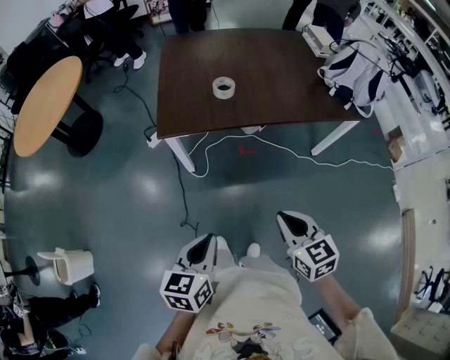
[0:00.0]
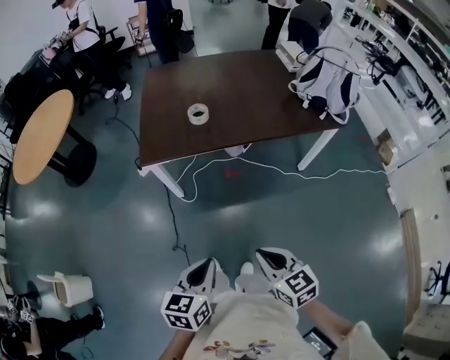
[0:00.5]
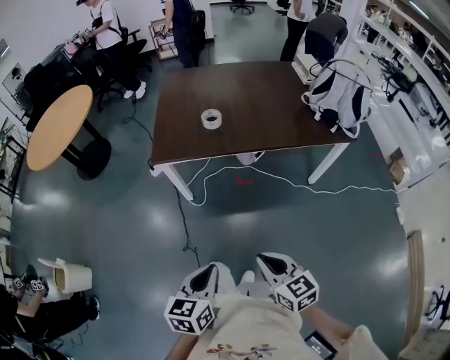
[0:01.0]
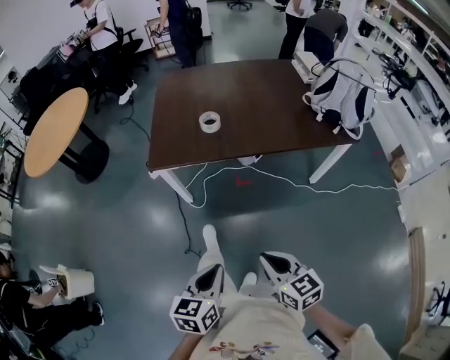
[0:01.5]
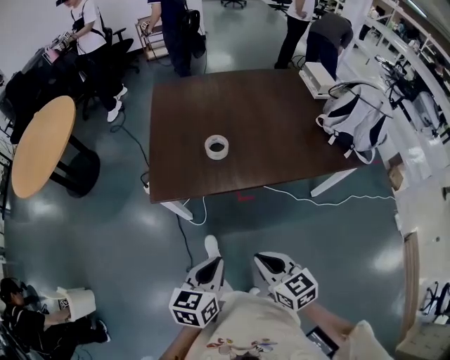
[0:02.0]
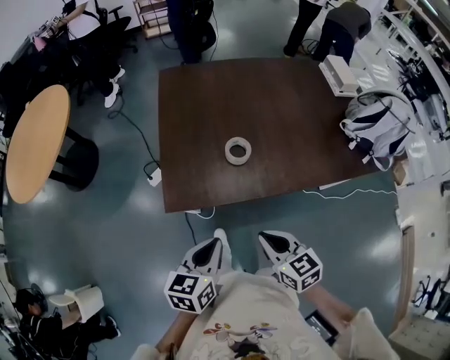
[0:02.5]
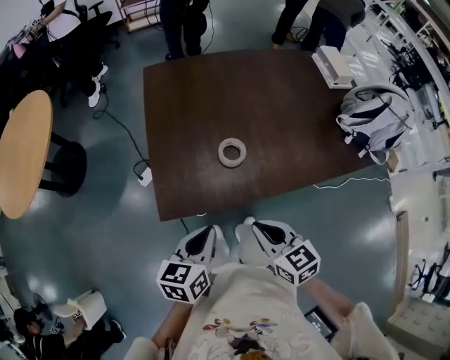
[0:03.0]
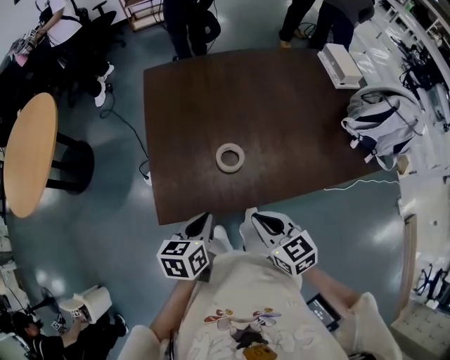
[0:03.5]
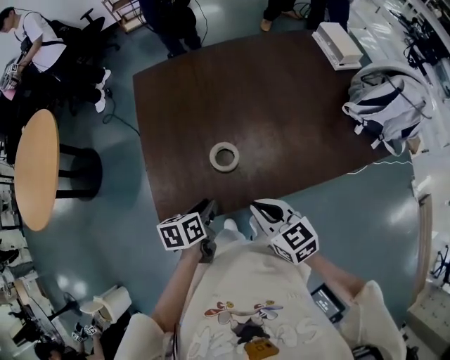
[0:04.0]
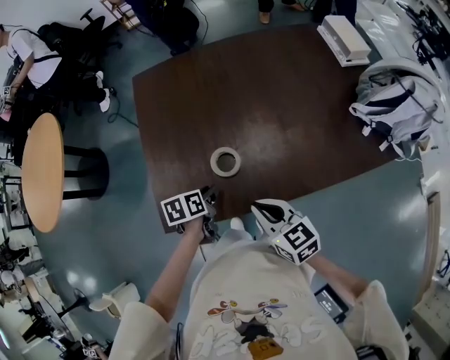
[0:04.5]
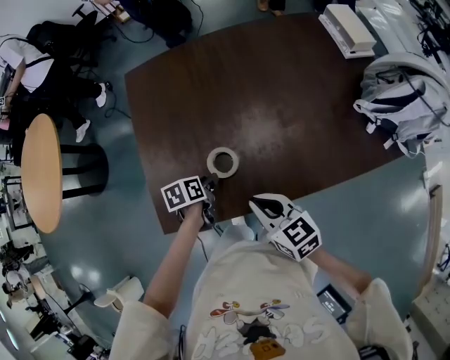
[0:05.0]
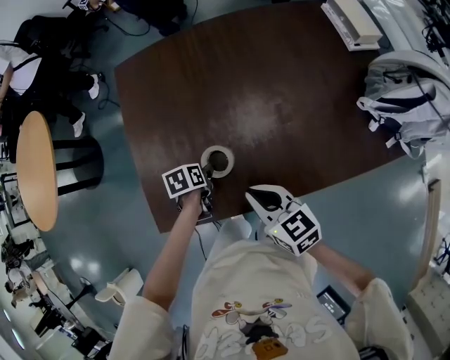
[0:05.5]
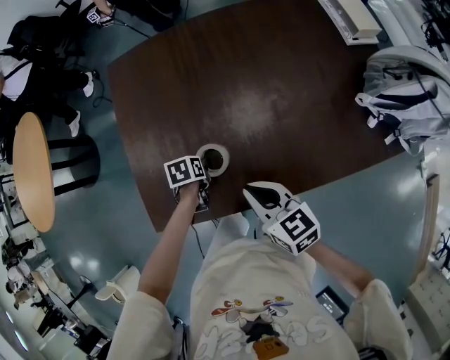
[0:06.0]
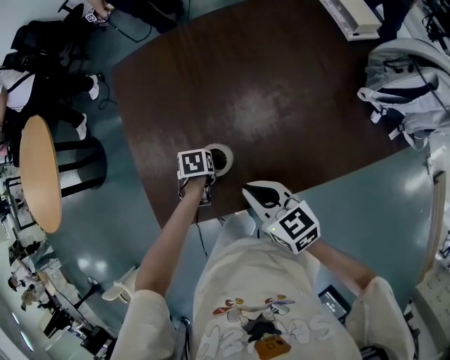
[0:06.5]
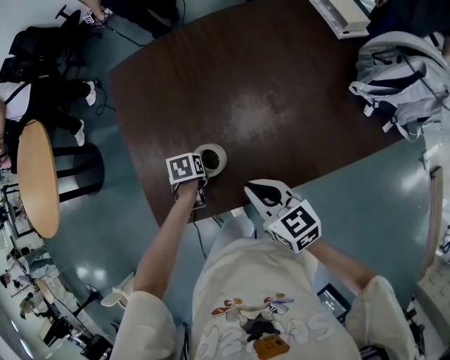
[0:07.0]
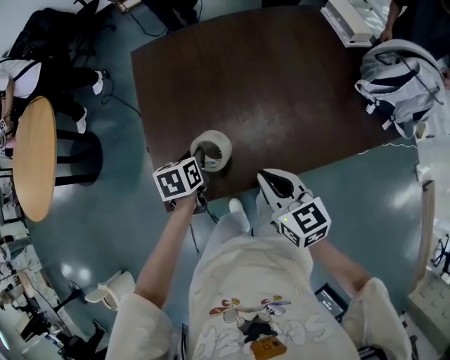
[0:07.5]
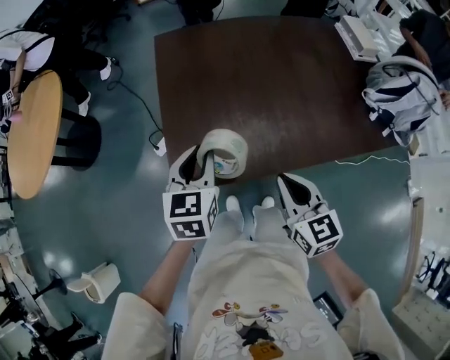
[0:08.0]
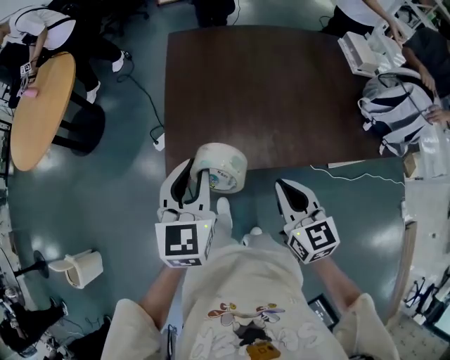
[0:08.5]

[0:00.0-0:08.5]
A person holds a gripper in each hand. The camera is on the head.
0:00.0 to 0:02.0: The left gripper shifts about 20 cm forward and to the right. The right gripper travels forward by approximately 15 cm.
0:02.0 to 0:04.0: The two grippers go about 35 cm forward. The left gripper rotates roughly 30 degrees, and opens its fingers.
0:04.0 to 0:06.5: The right gripper changes place by approximately 10 cm. Meanwhile the left gripper travels downward by roughly 15 cm, and angles its fingers downward, by some 30 degrees.
0:06.5 to 0:08.5: The left gripper heads upward, covering some 35 cm, and tilts its fingers roughly 60 degrees upward; the right gripper shifts by approximately 25 cm, and rotates about 20 degrees.

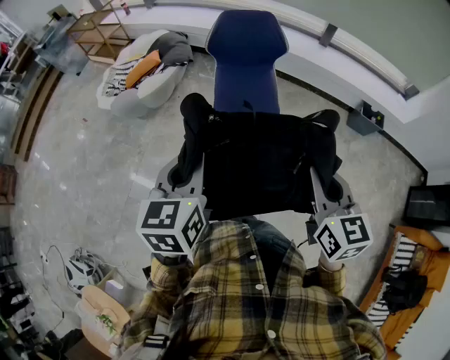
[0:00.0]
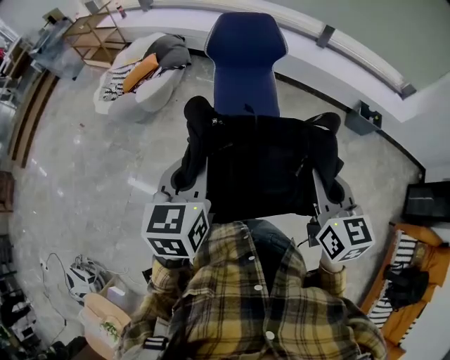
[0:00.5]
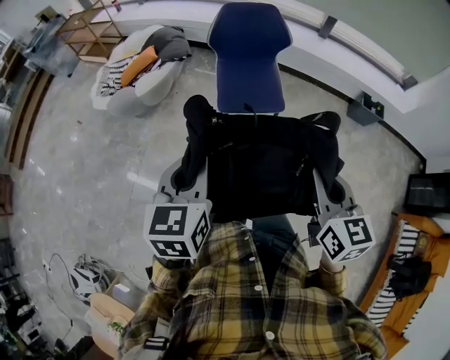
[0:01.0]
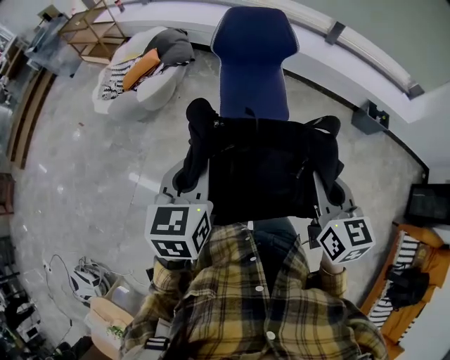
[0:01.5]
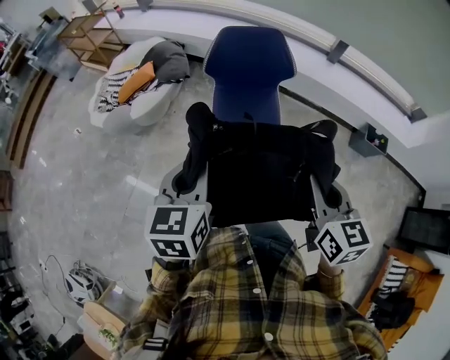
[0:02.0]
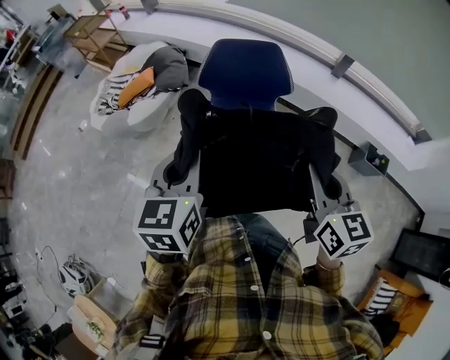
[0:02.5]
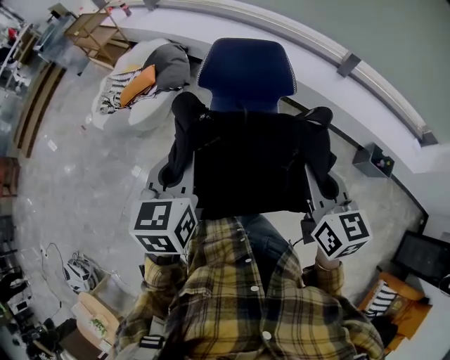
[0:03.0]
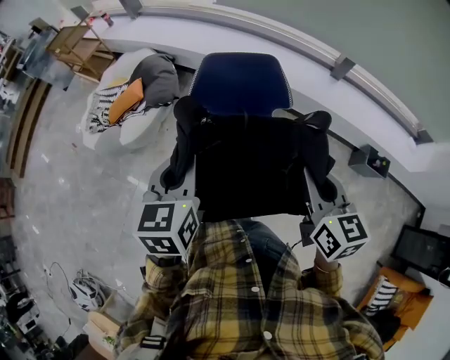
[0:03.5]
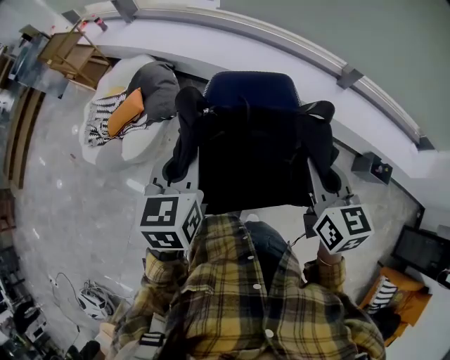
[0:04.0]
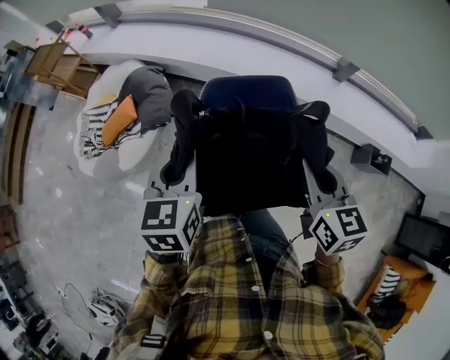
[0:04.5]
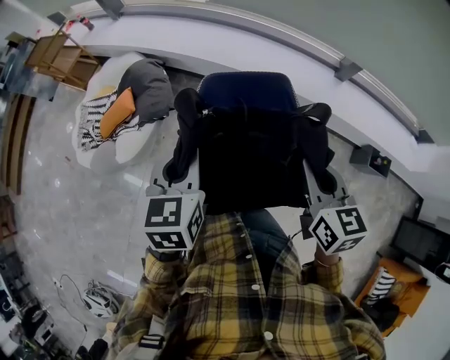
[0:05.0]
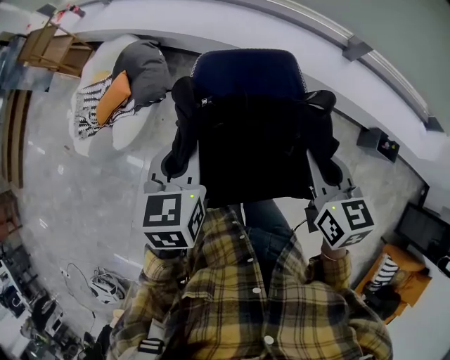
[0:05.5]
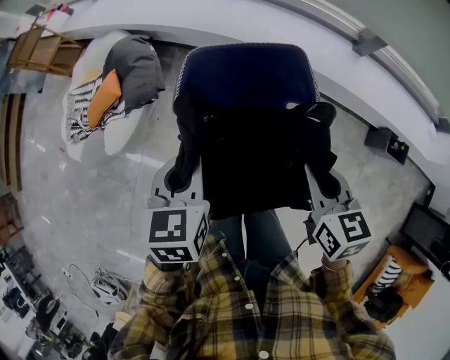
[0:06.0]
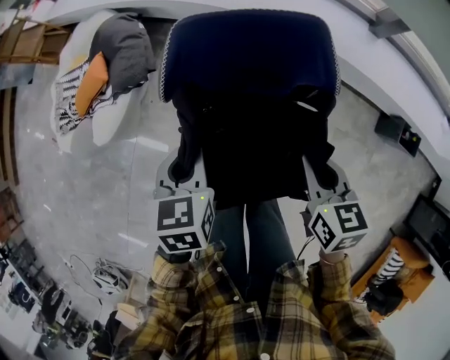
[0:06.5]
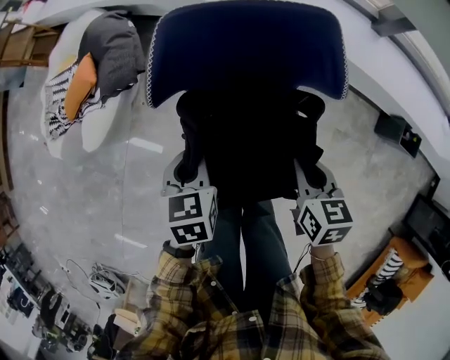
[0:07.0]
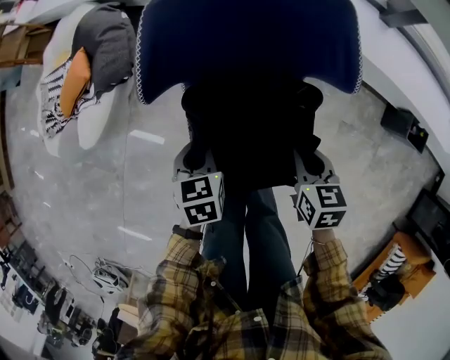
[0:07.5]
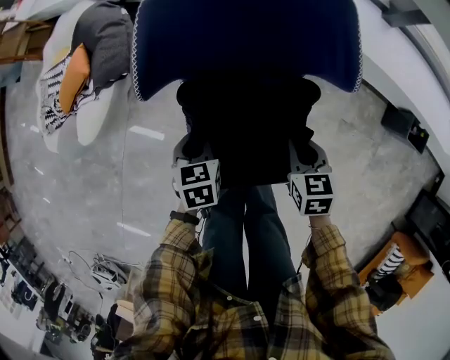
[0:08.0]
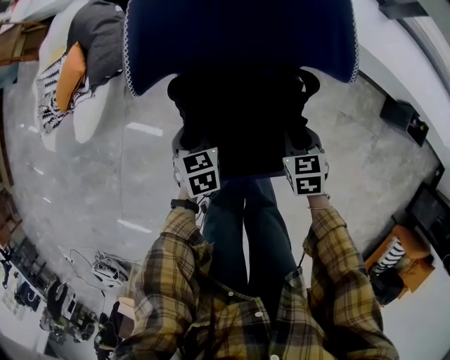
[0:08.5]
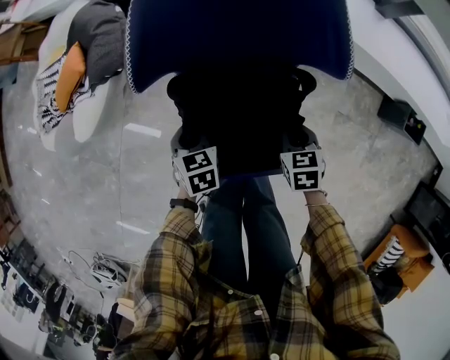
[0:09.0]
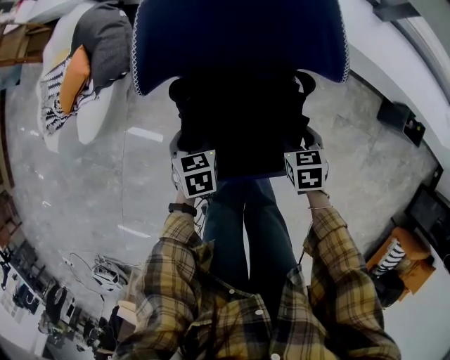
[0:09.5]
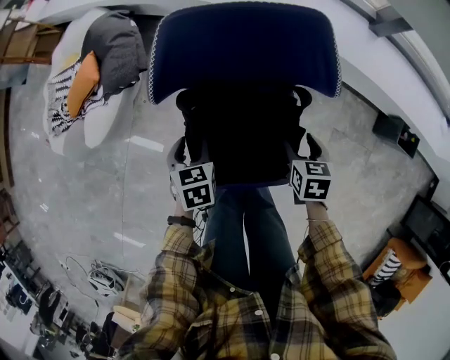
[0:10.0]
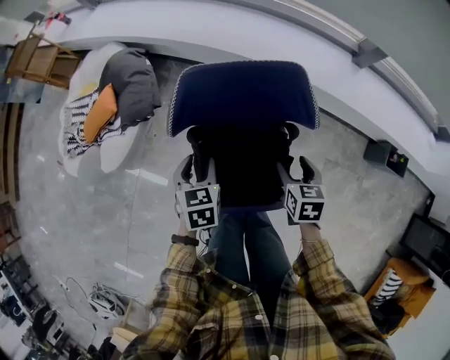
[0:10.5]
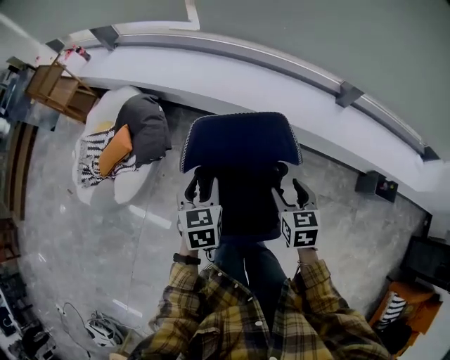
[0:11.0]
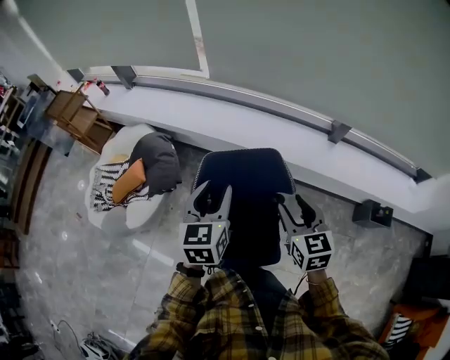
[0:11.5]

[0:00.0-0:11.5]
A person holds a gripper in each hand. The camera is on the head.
0:00.0 to 0:02.0: Both grippers move forward, roughly 20 cm.
0:02.0 to 0:04.0: The two grippers go about 35 cm forward.
0:04.0 to 0:06.0: The two grippers go roughly 15 cm downward.
0:06.0 to 0:07.5: The grippers both shift downward by roughly 25 cm.
0:07.5 to 0:09.5: The right gripper heads downward, covering approximately 10 cm, and opens. Meanwhile the left gripper travels downward by about 5 cm, and opens its fingers.
0:09.5 to 0:11.5: The two grippers go some 40 cm upward. The right gripper points its fingers approximately 40 degrees further upward. Meanwhile the left gripper tilts its fingers about 40 degrees upward.

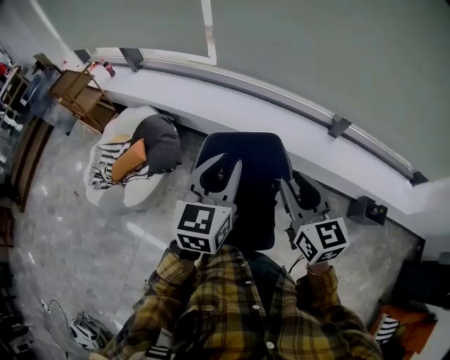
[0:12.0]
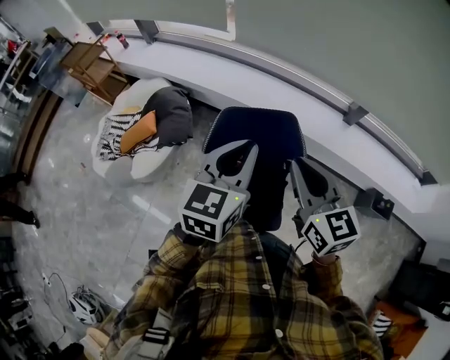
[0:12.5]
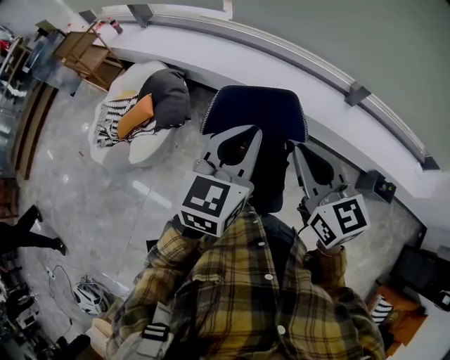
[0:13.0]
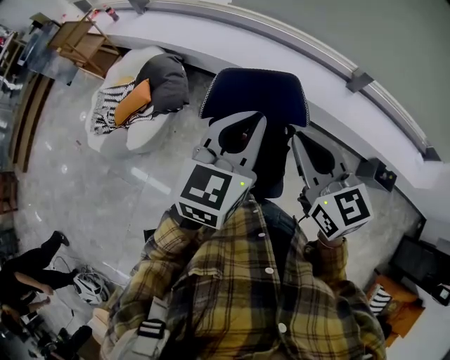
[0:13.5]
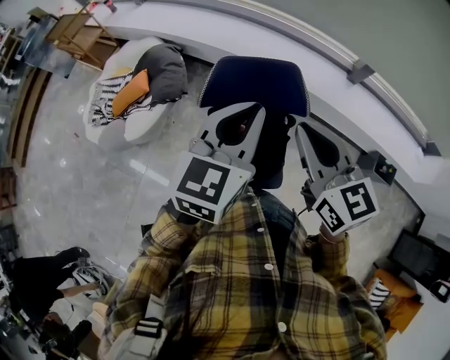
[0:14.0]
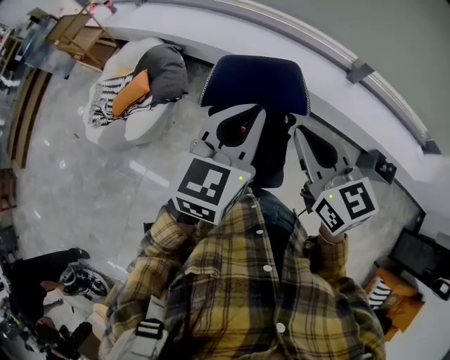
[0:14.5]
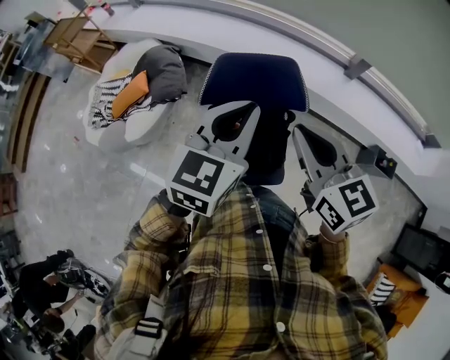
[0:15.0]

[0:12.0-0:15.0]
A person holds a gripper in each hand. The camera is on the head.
0:12.0 to 0:13.5: The right gripper changes place by roughly 5 cm, and closes; the left gripper goes roughly 5 cm backward, and closes its fingers.
0:13.5 to 0:15.0: There are only small adjustments of the grippers.

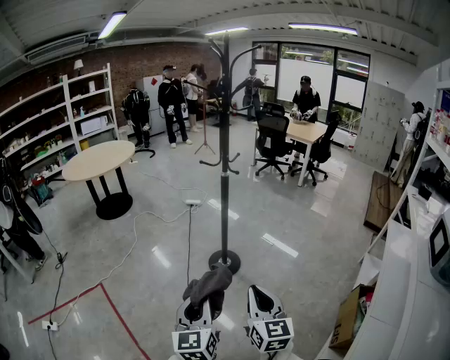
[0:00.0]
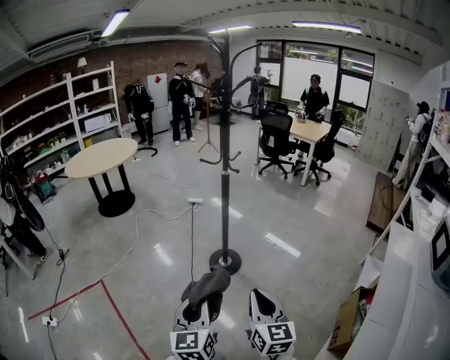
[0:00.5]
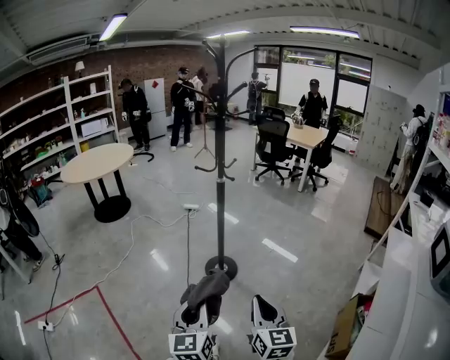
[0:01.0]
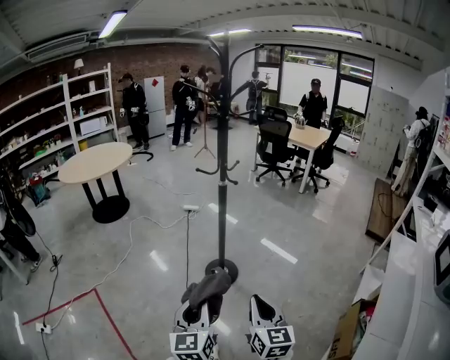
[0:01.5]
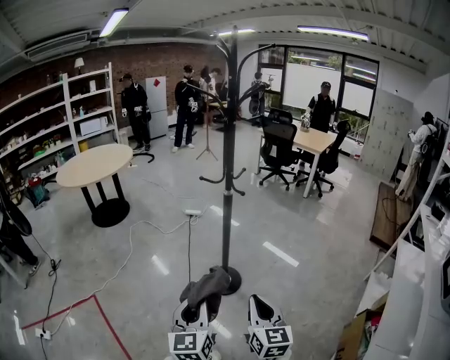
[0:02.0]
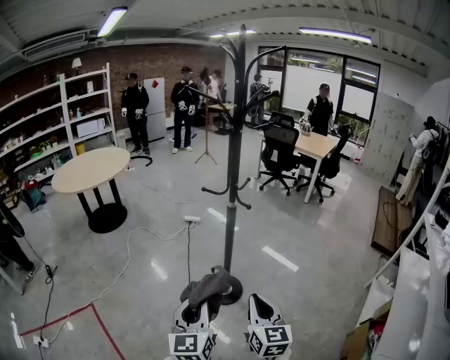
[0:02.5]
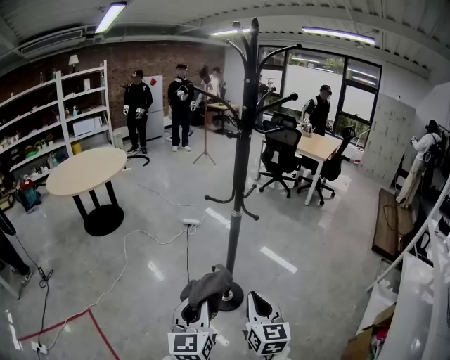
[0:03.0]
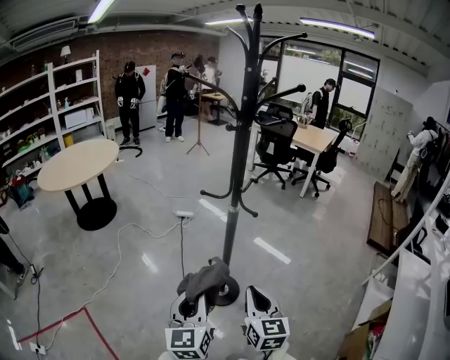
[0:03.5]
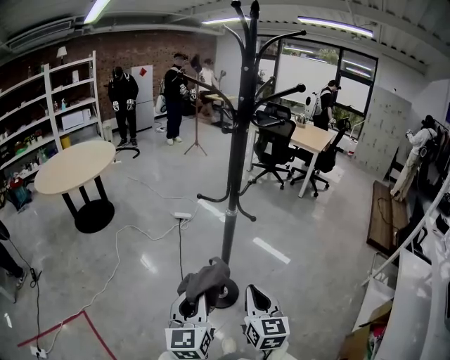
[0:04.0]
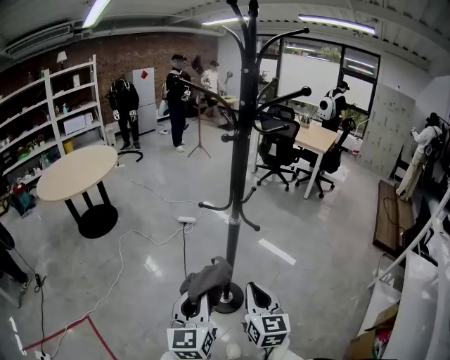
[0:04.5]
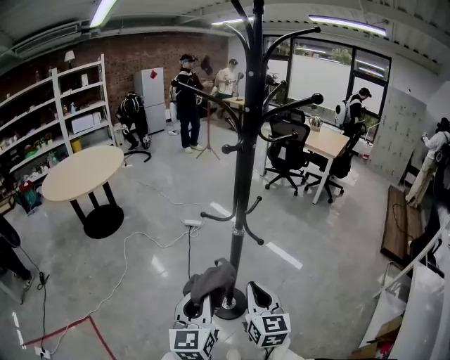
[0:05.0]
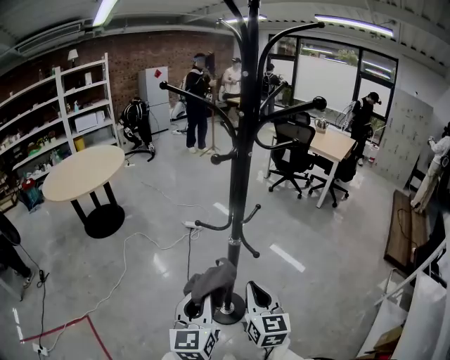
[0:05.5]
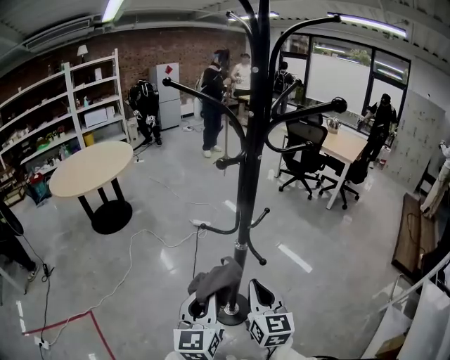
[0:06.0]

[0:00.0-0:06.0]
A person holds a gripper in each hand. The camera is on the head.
0:00.0 to 0:02.0: The grippers both shift forward by approximately 10 cm.
0:02.0 to 0:04.0: The grippers both shift forward by some 15 cm.
0:04.0 to 0:06.0: Both grippers travel together forward, about 10 cm.
